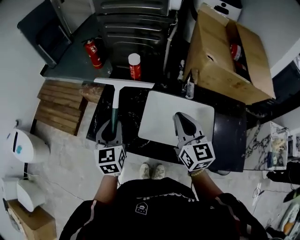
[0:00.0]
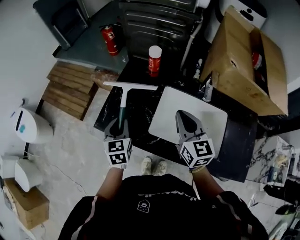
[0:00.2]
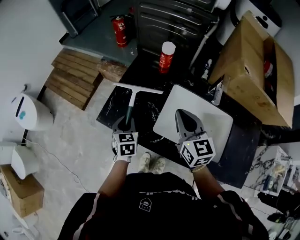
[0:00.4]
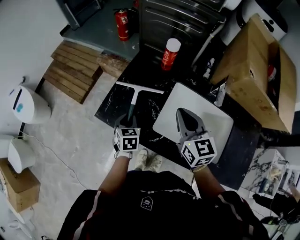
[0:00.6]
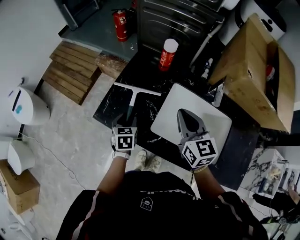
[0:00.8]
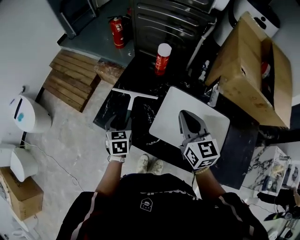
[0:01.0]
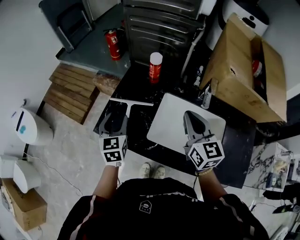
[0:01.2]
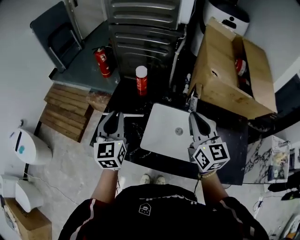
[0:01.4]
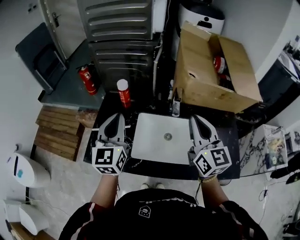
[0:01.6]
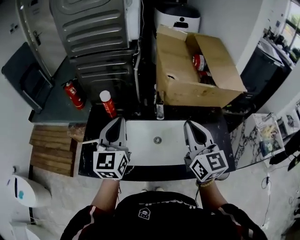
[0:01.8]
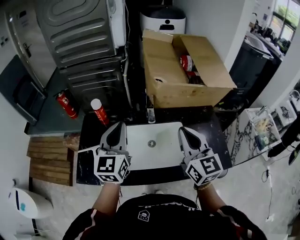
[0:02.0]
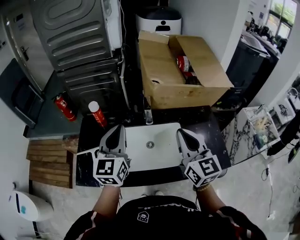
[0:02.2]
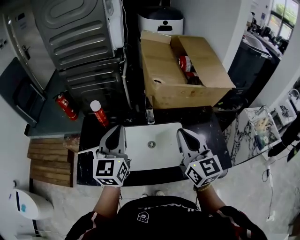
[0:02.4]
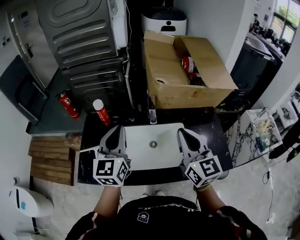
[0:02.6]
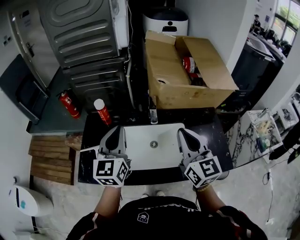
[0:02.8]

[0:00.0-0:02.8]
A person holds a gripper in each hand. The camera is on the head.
0:00.0 to 0:01.4: The right gripper goes approximately 5 cm upward, and goes to the left and returns, approximately 10 cm each way; the left gripper reaches about 20 cm downward, then returns, and opens and closes again.
0:01.4 to 0:02.8: The left gripper moves to the right and upward, approximately 20 cm, and turns by roughly 20 degrees, while the right gripper moves to the right, backward and upward, roughly 15 cm.

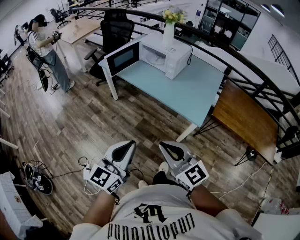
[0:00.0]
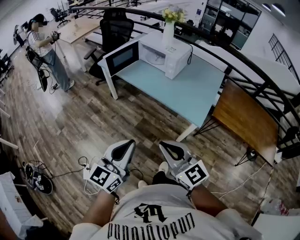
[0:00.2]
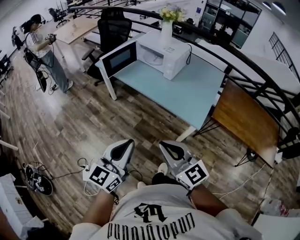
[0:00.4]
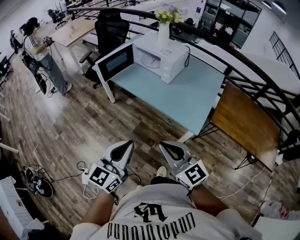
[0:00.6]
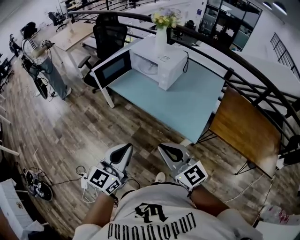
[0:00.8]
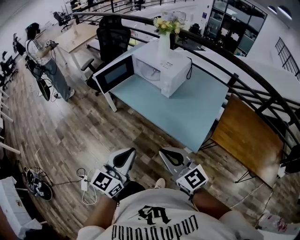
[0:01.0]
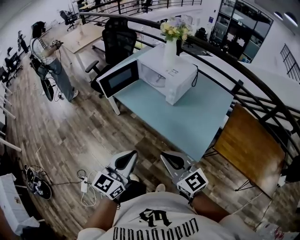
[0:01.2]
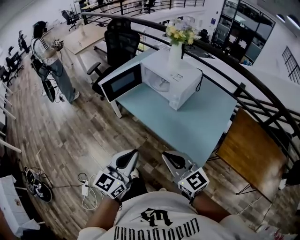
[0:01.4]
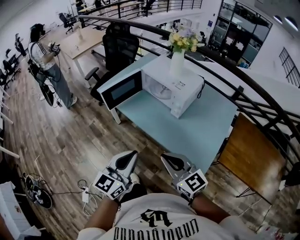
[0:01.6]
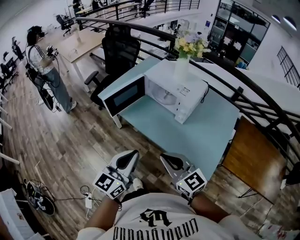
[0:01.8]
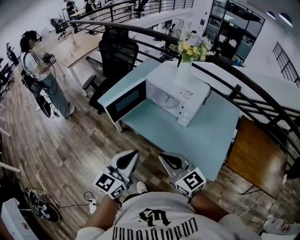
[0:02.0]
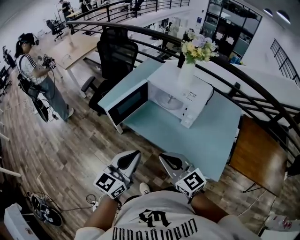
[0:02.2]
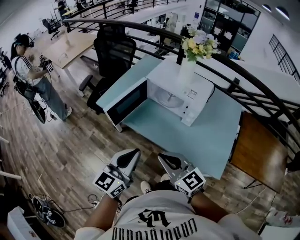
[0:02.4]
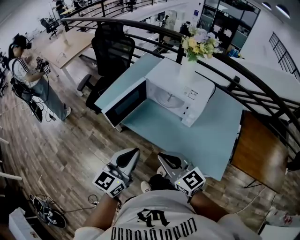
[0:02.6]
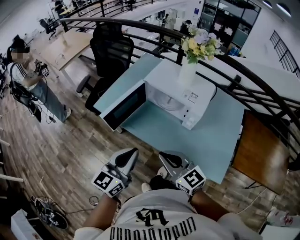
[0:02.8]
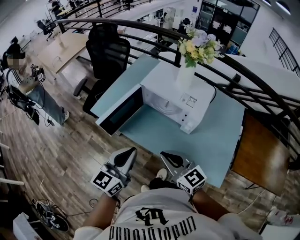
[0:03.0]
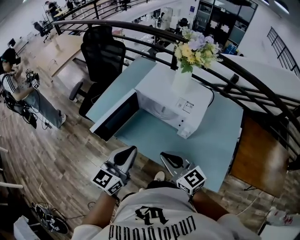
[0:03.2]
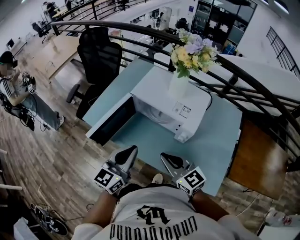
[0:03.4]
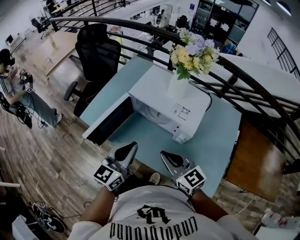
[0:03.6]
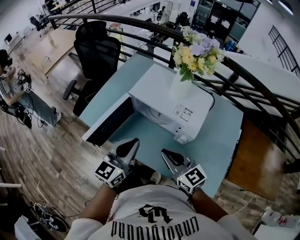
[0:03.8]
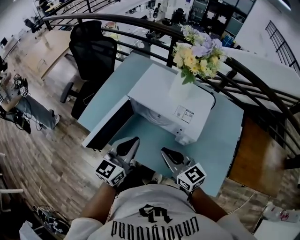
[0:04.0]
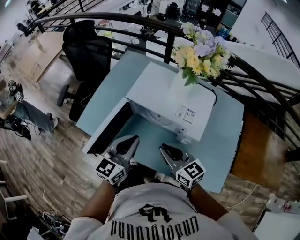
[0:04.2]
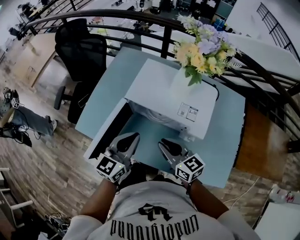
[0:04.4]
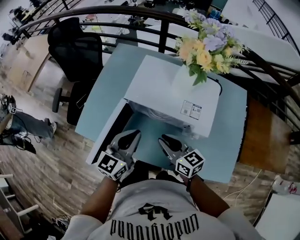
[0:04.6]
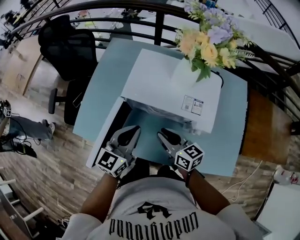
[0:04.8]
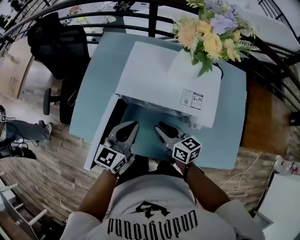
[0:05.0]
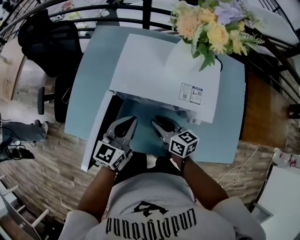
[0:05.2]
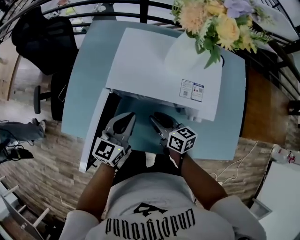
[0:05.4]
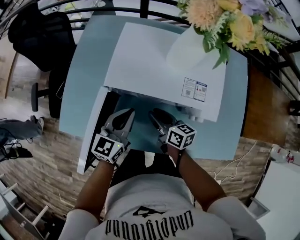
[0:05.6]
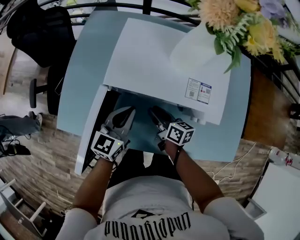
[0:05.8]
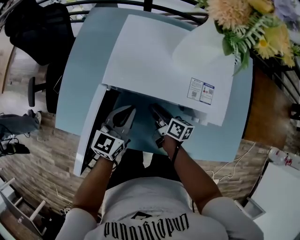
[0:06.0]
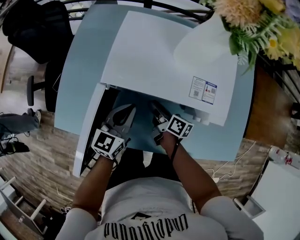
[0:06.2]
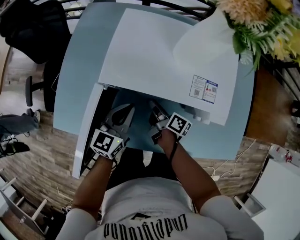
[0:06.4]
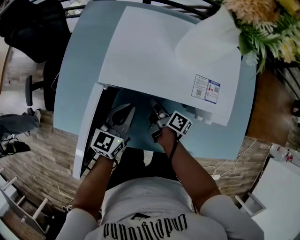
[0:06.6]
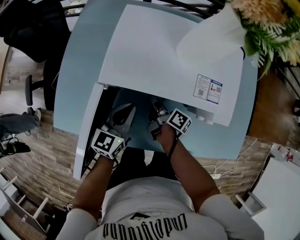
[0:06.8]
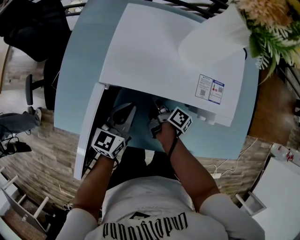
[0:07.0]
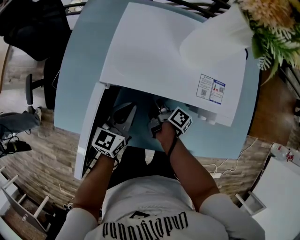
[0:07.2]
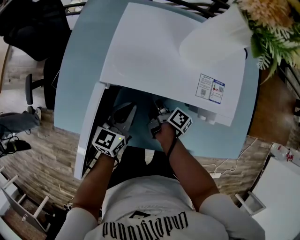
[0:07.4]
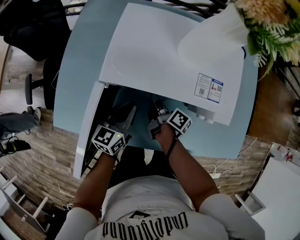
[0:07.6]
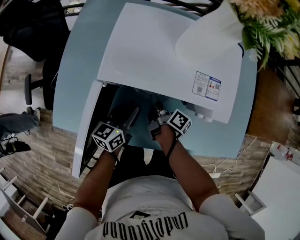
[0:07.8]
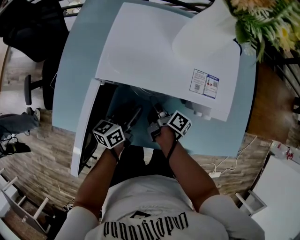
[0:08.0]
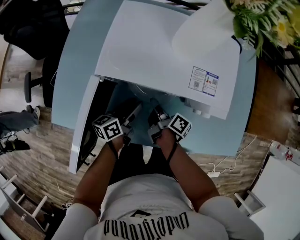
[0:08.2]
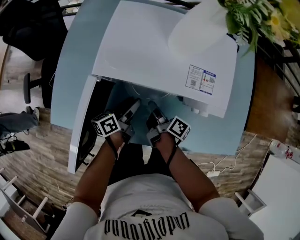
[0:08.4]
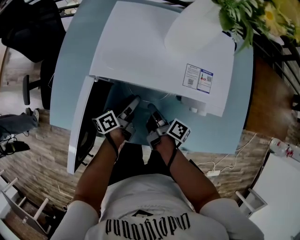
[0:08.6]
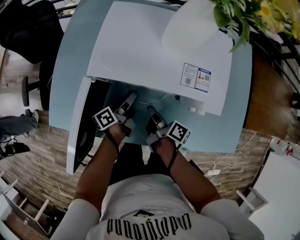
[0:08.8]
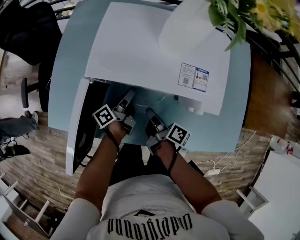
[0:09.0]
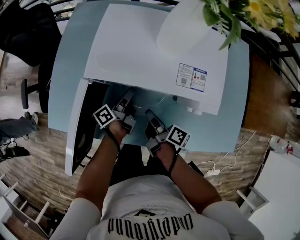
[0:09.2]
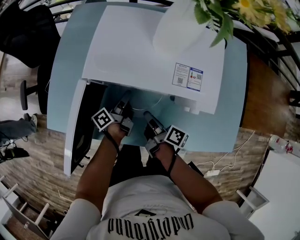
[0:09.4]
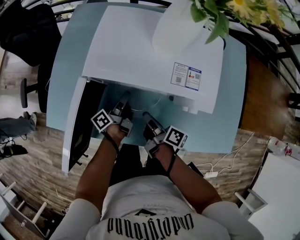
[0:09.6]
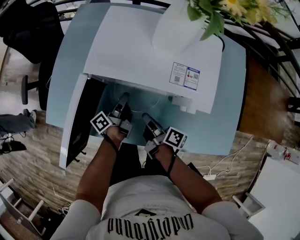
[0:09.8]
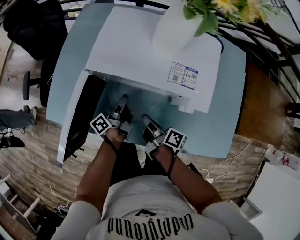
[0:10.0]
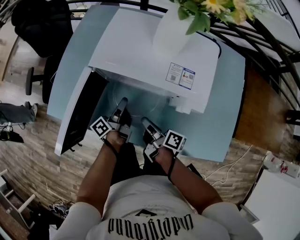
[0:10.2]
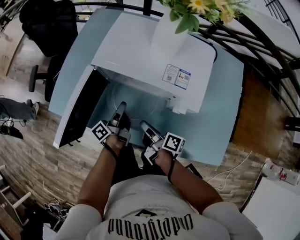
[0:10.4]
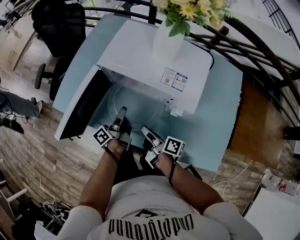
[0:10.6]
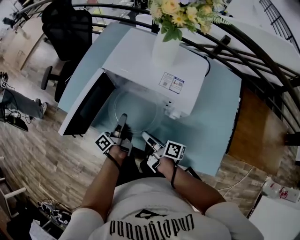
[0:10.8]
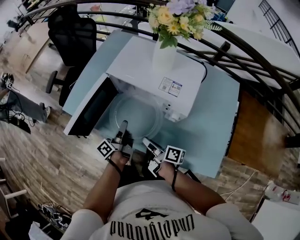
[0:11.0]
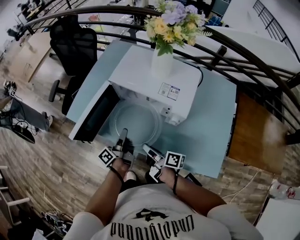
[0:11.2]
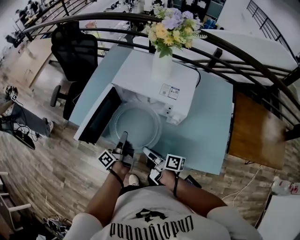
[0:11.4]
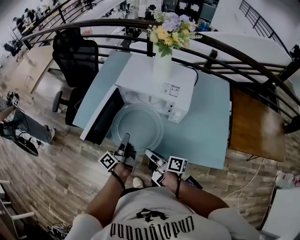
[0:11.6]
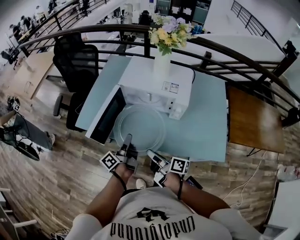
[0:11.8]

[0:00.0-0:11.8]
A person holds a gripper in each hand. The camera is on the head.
0:00.0 to 0:01.4: The two grippers go roughly 15 cm forward and to the right.
0:01.4 to 0:03.0: The left gripper heads forward, covering some 25 cm. Meanwhile the right gripper shifts approximately 20 cm forward and to the left.
0:03.0 to 0:04.4: The left gripper heads forward, covering roughly 15 cm. Meanwhile the right gripper goes approximately 15 cm forward and downward, and turns by about 20 degrees.
0:04.4 to 0:06.0: Both grippers travel together downward and forward, roughly 20 cm. The right gripper rotates around the line of its fingers by about 50 degrees, clockwise from behind.
0:06.0 to 0:07.4: The right gripper changes its angle by approximately 30 degrees.
0:07.4 to 0:08.8: The left gripper heads downward, covering about 5 cm, twists about 60 degrees counterclockwise, seen from behind, and opens; the right gripper travels backward by roughly 5 cm.
0:08.8 to 0:10.4: Both grippers move backward, some 5 cm. The left gripper rotates about 20 degrees, and closes up.
0:10.4 to 0:11.8: Both grippers move backward, upward and to the left, about 15 cm.

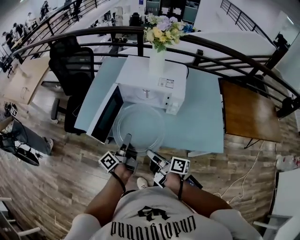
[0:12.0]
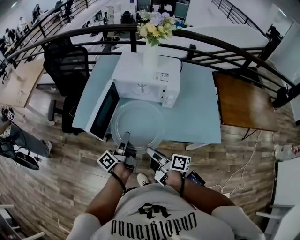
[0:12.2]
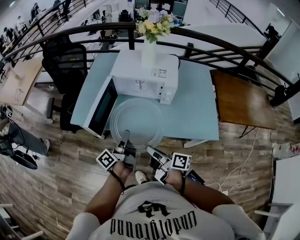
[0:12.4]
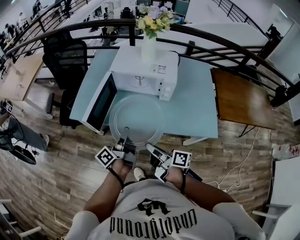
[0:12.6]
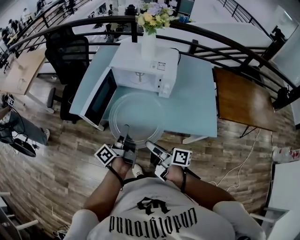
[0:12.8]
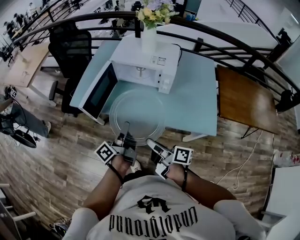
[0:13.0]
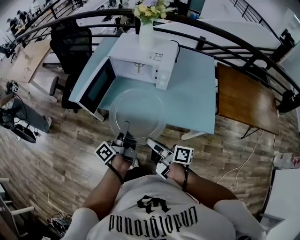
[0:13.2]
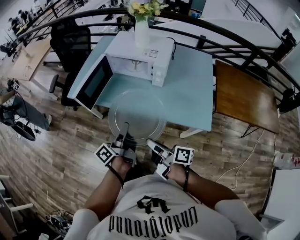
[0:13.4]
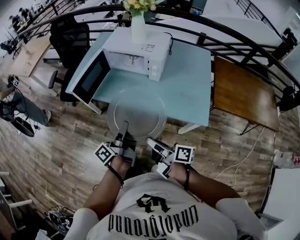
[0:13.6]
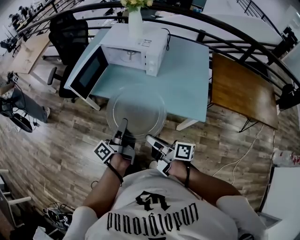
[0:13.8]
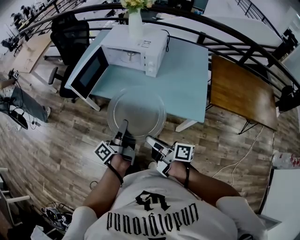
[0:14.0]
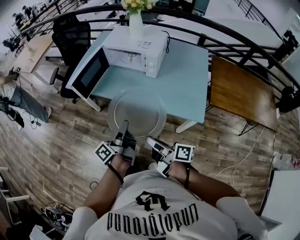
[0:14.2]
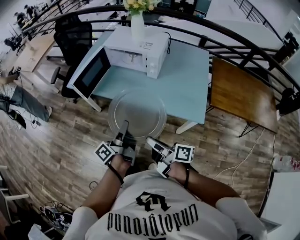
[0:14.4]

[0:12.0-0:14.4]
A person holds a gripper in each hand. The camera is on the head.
0:12.0 to 0:13.2: Both grippers travel together backward and to the right, roughly 10 cm.
0:13.2 to 0:14.4: The grippers both shift backward by roughly 10 cm.

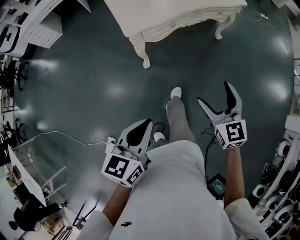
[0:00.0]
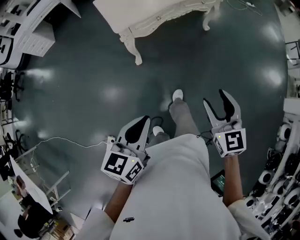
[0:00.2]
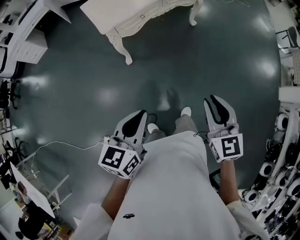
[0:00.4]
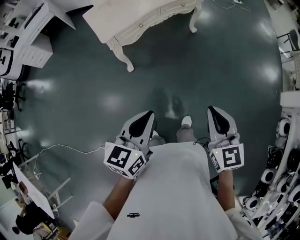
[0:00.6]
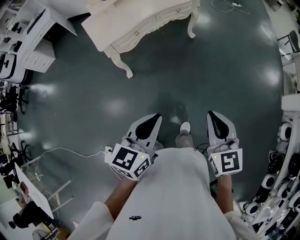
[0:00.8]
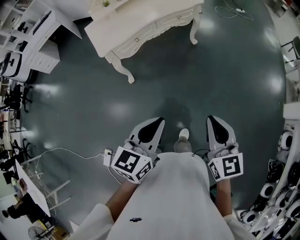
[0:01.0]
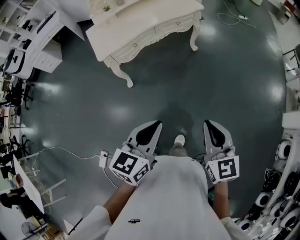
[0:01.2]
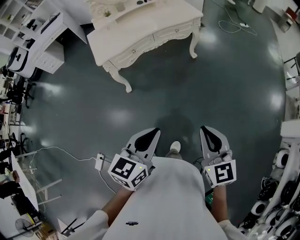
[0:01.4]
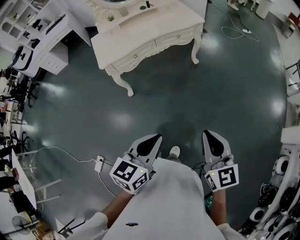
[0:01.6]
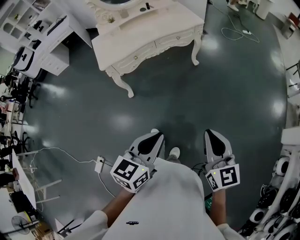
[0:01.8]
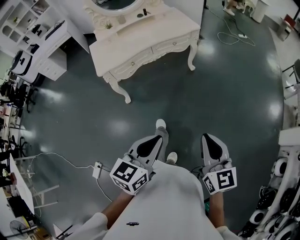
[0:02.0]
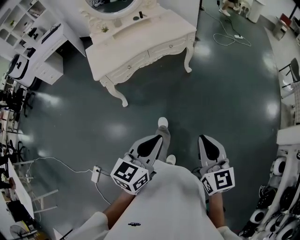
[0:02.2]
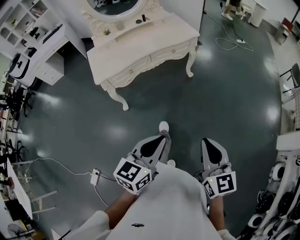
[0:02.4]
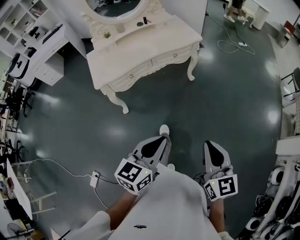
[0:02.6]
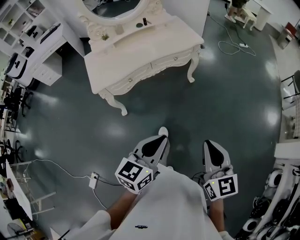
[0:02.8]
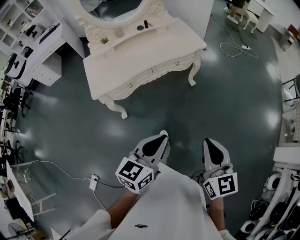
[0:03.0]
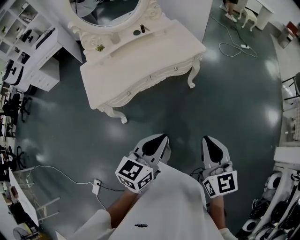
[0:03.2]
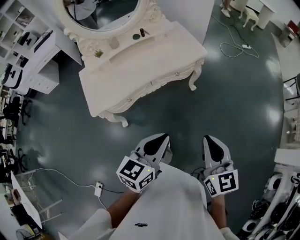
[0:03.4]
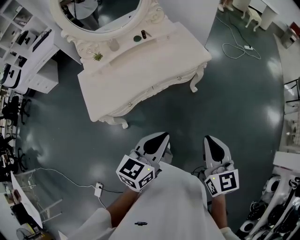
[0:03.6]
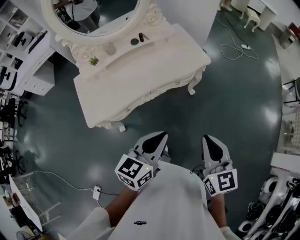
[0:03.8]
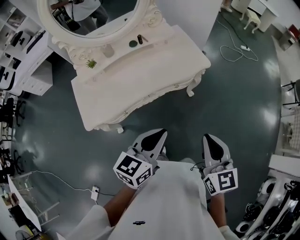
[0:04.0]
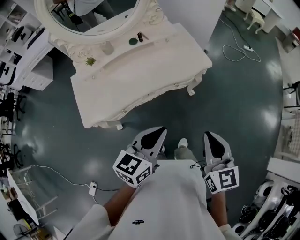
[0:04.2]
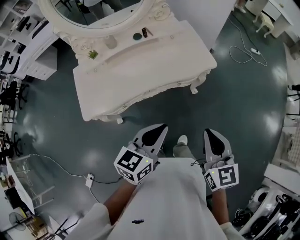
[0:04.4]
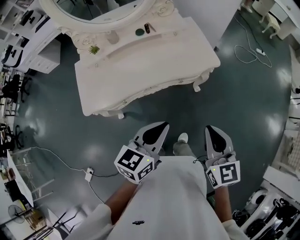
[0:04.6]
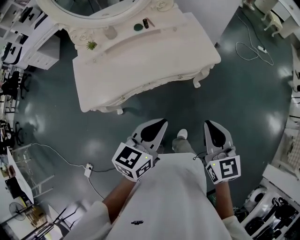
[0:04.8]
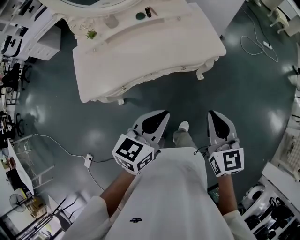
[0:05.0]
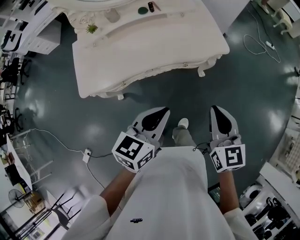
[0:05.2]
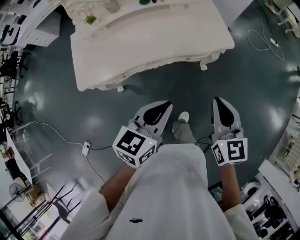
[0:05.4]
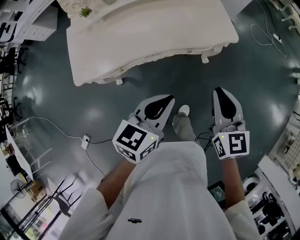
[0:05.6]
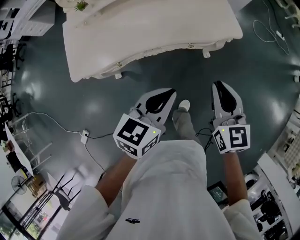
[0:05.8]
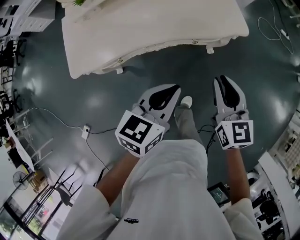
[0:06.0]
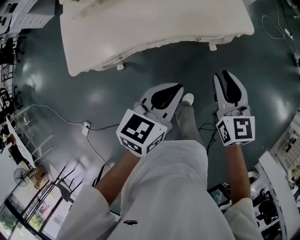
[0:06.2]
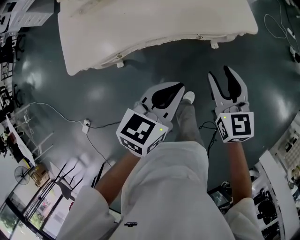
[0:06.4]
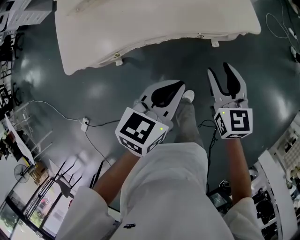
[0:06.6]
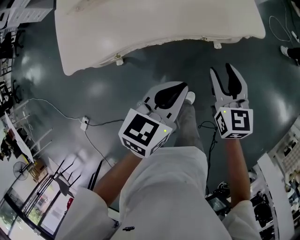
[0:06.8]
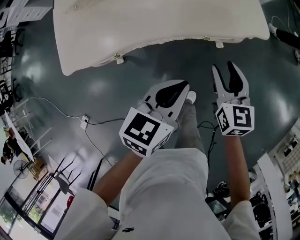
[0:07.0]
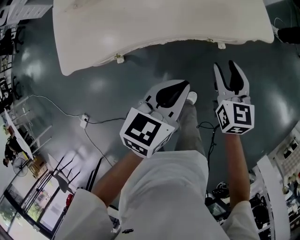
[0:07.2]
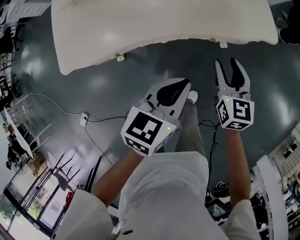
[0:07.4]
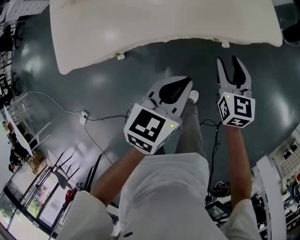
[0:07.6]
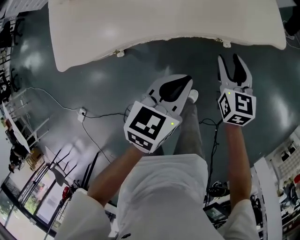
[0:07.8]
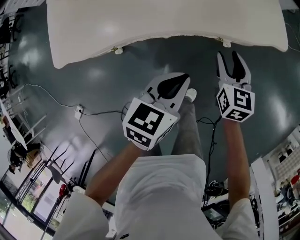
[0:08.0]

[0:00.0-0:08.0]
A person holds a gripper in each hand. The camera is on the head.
0:00.0 to 0:01.6: The grippers both shift to the right by roughly 35 cm. The right gripper closes up.
0:01.6 to 0:03.2: The grippers both shift forward by about 25 cm.
0:03.2 to 0:04.8: Both grippers travel together forward, roughly 25 cm.
0:04.8 to 0:06.4: Both grippers travel together downward and forward, some 15 cm. The right gripper opens.
0:06.4 to 0:08.0: The right gripper moves downward and forward, approximately 20 cm. The left gripper moves downward, about 10 cm.
